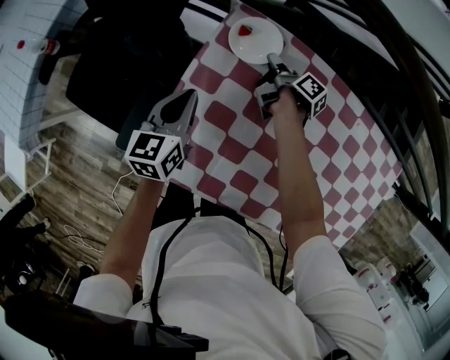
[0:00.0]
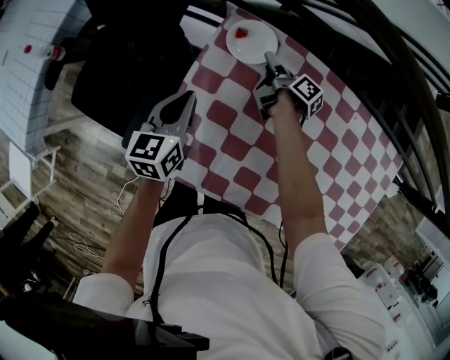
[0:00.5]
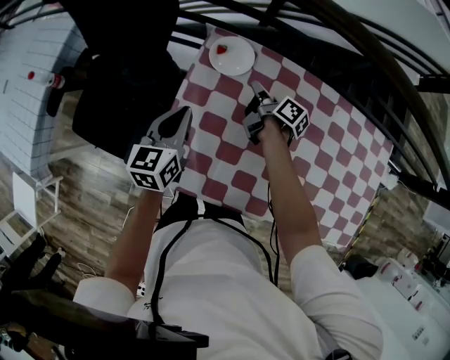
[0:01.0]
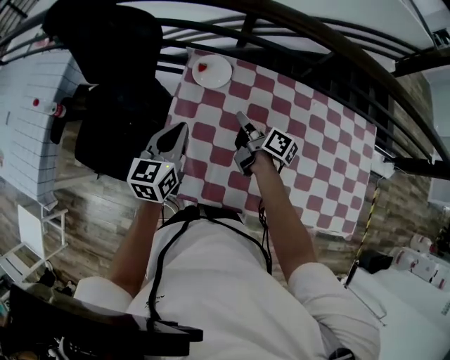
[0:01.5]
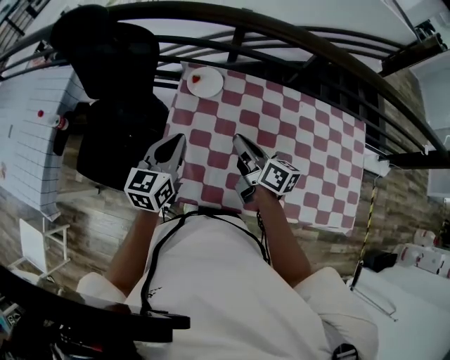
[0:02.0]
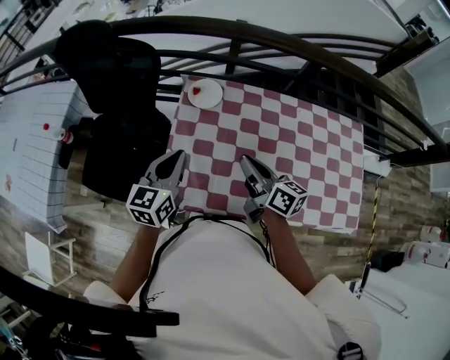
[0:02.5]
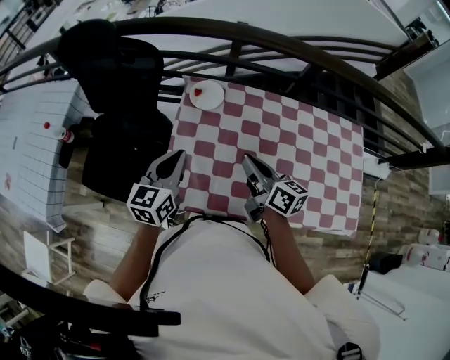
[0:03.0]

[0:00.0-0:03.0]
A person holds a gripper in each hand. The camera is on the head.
0:00.0 to 0:01.5: The left gripper goes approximately 10 cm upward.
0:01.5 to 0:03.0: The left gripper changes place by about 10 cm.

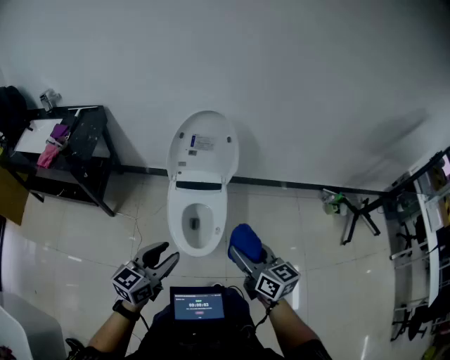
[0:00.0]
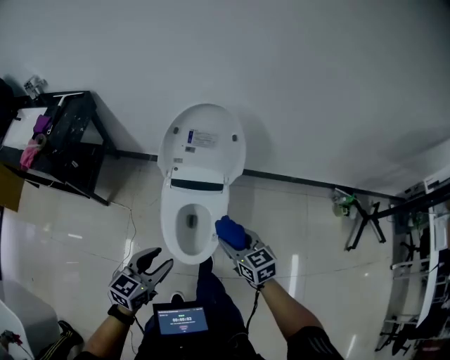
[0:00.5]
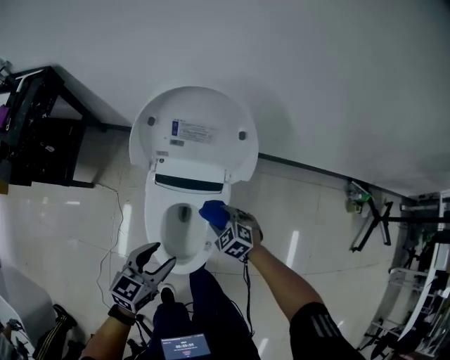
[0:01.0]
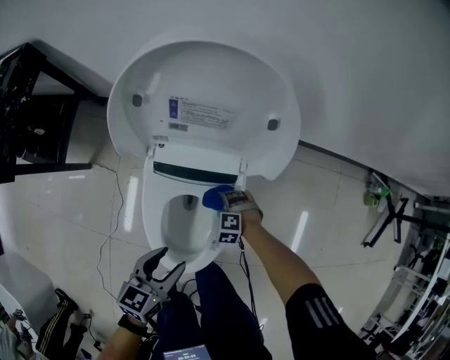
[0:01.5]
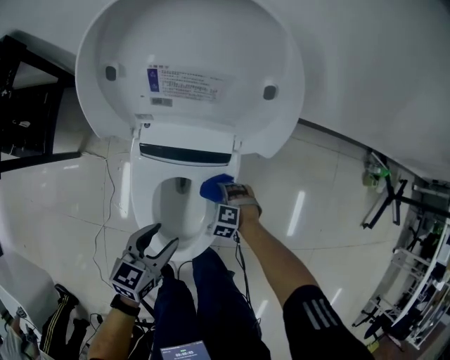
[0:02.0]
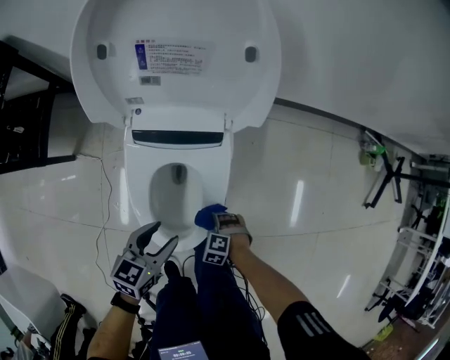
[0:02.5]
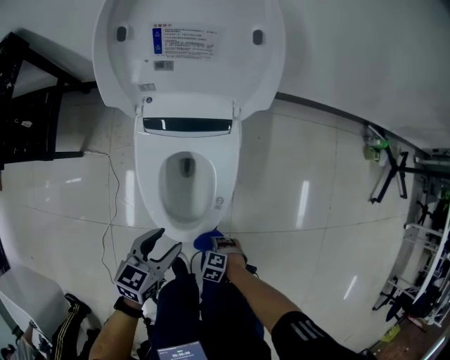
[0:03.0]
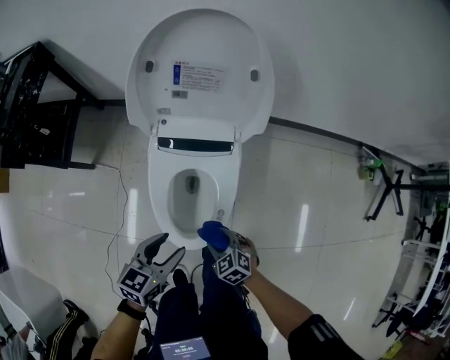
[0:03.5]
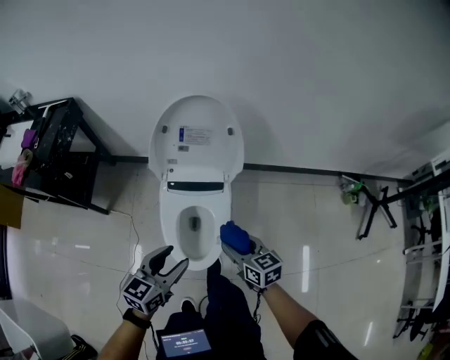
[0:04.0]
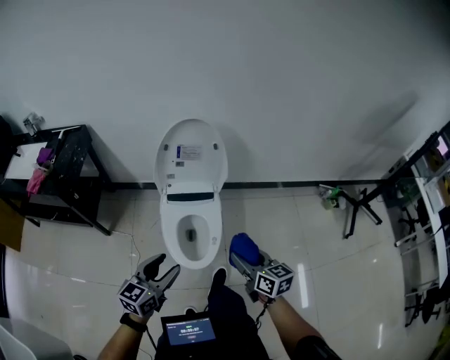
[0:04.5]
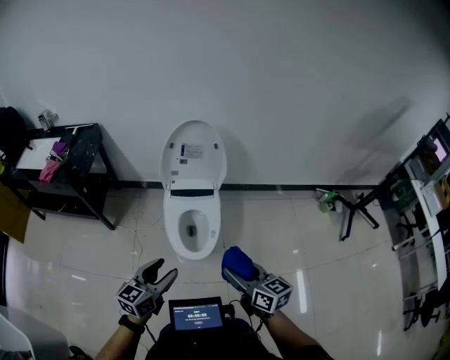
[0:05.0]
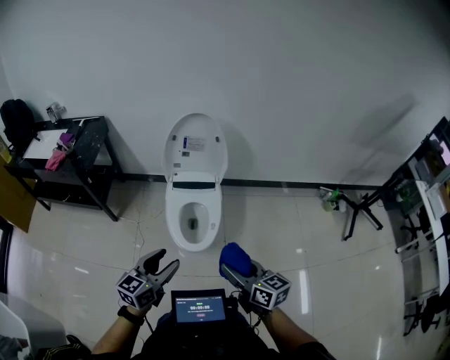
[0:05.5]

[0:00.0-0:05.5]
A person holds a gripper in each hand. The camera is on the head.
0:00.0 to 0:02.0: The left gripper travels downward by approximately 40 cm, and turns by approximately 30 degrees. The right gripper heads downward, covering roughly 70 cm, and points its fingers about 60 degrees further downward.
0:02.0 to 0:03.5: The left gripper shifts by some 15 cm. Meanwhile the right gripper shifts by some 25 cm, and rotates some 40 degrees.
0:03.5 to 0:05.5: Both grippers travel together upward and backward, about 50 cm. The left gripper rotates approximately 20 degrees. The right gripper tilts its fingers about 40 degrees upward.

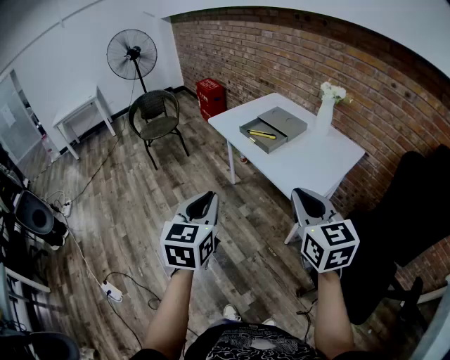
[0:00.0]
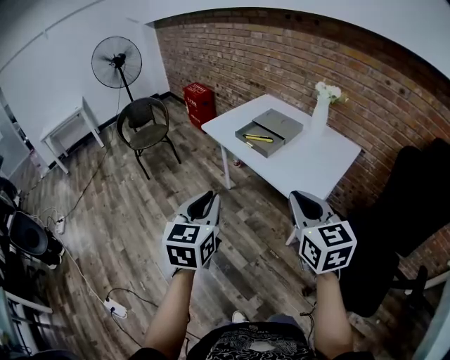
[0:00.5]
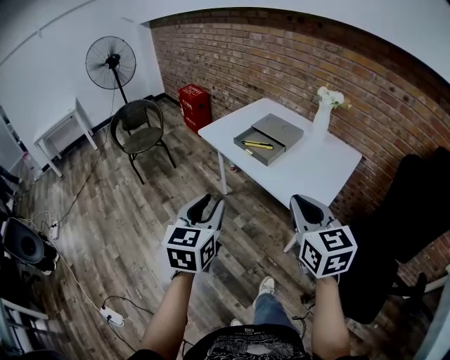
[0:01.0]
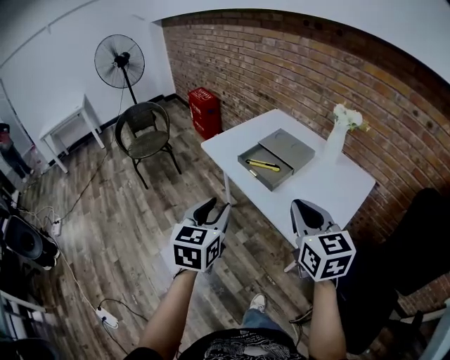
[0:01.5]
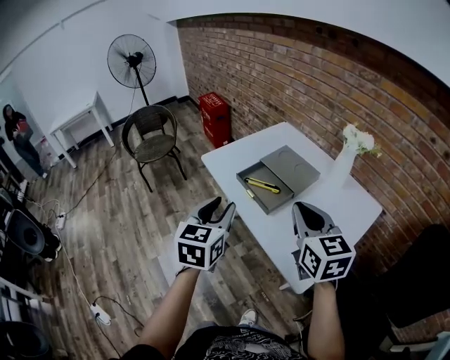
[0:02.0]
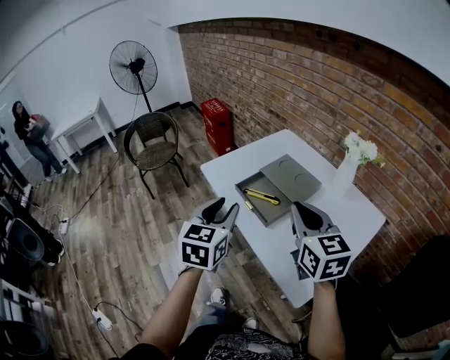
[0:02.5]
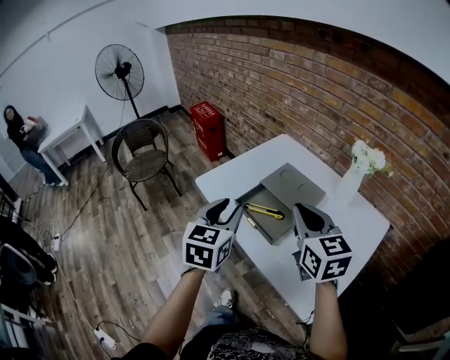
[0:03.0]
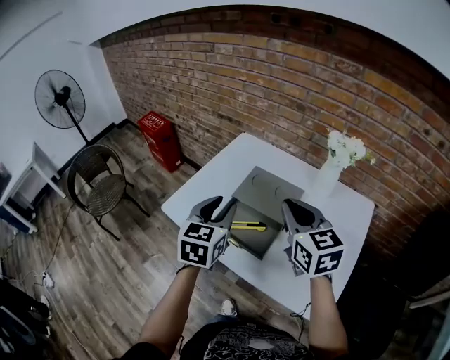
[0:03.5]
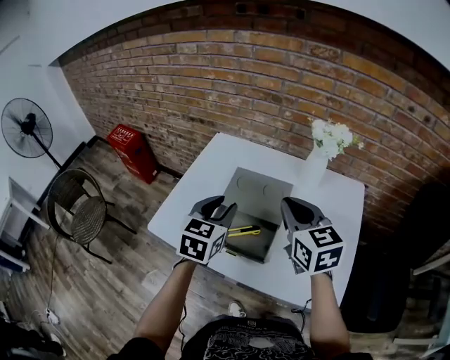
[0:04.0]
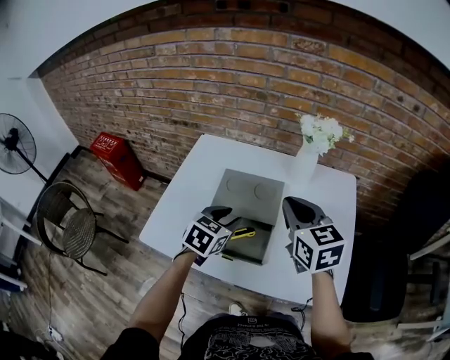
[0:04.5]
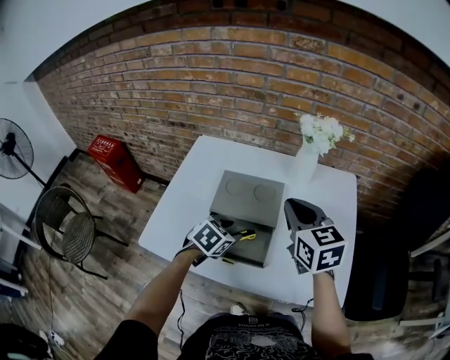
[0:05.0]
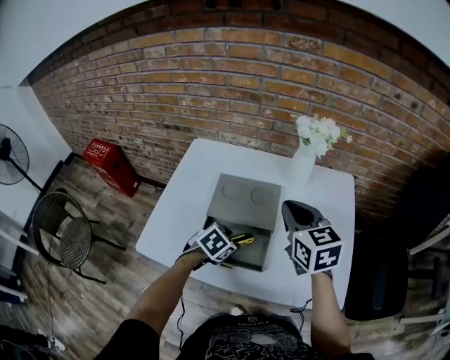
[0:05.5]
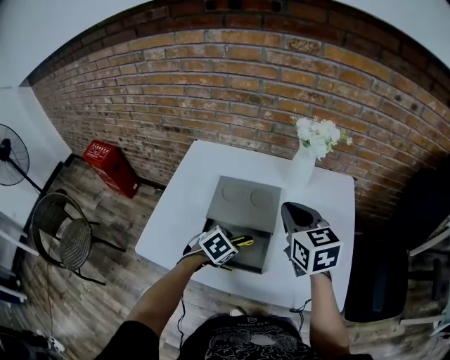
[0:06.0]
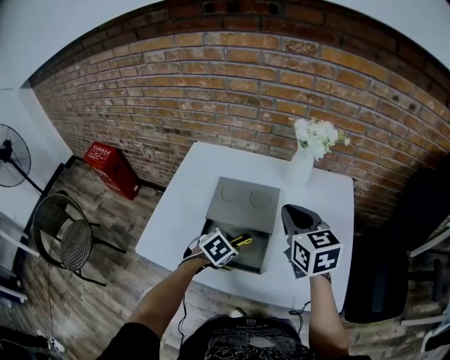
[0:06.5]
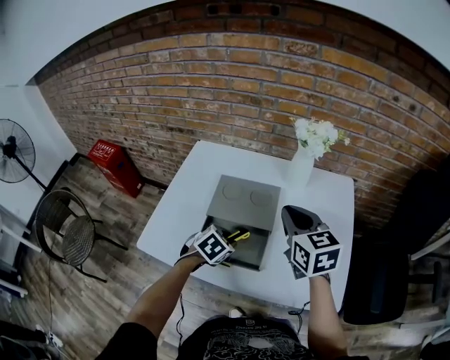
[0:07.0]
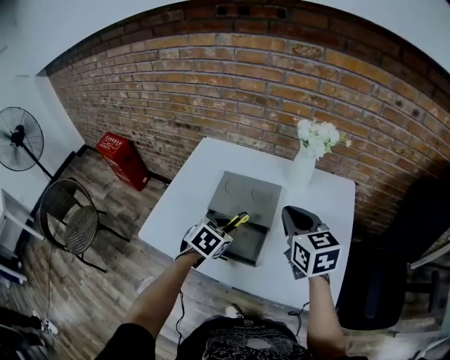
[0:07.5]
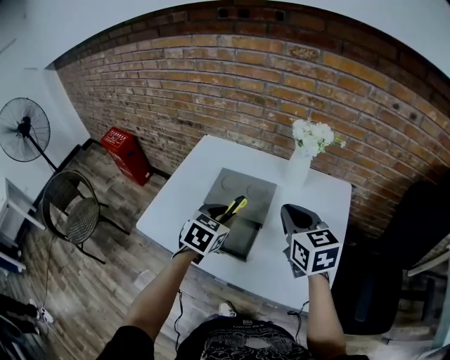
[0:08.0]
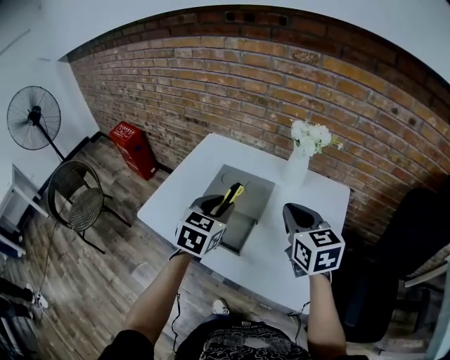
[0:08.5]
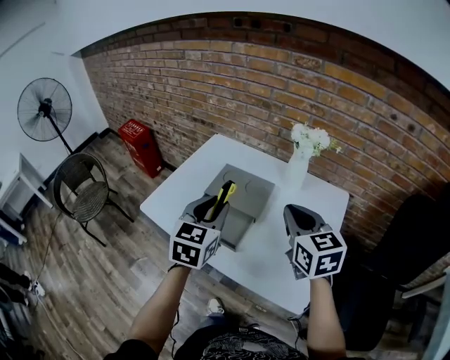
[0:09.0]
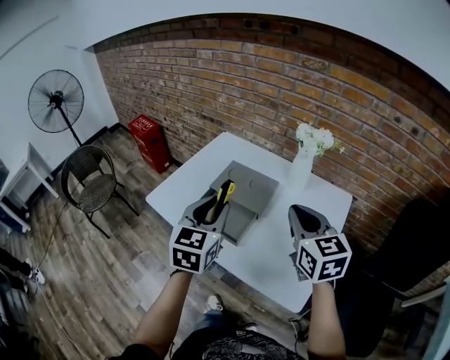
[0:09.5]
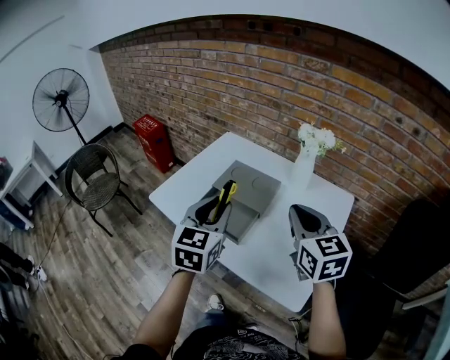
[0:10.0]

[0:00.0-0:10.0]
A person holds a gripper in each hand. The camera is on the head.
0:00.0 to 0:02.0: The two grippers go approximately 30 cm forward. The left gripper opens its fingers.
0:02.0 to 0:04.0: The right gripper moves approximately 20 cm, and rotates roughly 30 degrees. The left gripper changes place by approximately 30 cm, and rotates about 40 degrees.
0:04.0 to 0:06.0: The right gripper changes place by some 5 cm. Meanwhile the left gripper is displaced downward by some 20 cm, and tips its fingers downward by approximately 40 degrees.
0:06.0 to 0:08.0: The left gripper travels upward by approximately 15 cm, and changes its angle by approximately 30 degrees. The right gripper moves about 5 cm.
0:08.0 to 0:10.0: The right gripper heads backward and upward, covering roughly 10 cm. The left gripper moves upward and backward, roughly 15 cm, and turns by about 30 degrees.

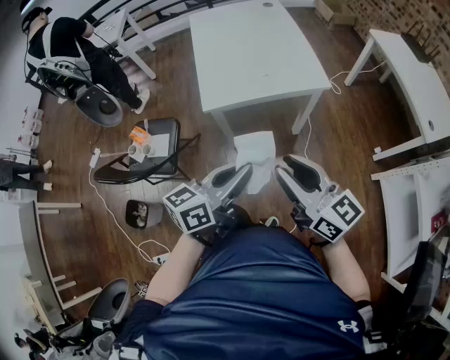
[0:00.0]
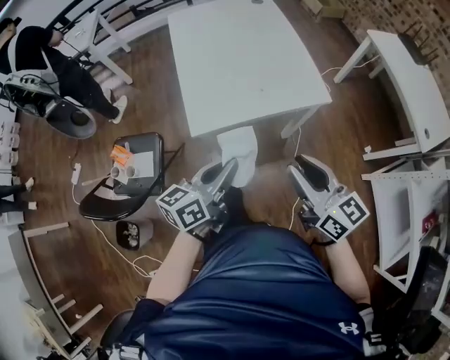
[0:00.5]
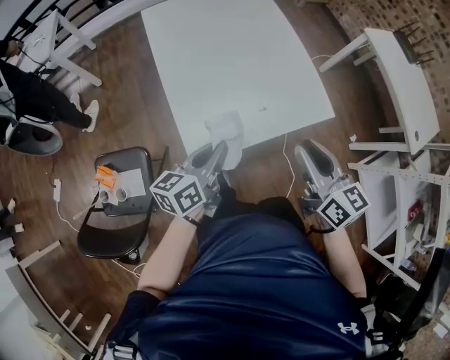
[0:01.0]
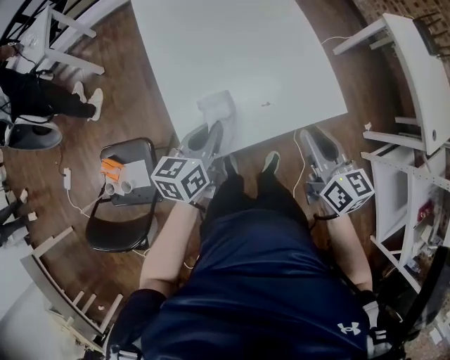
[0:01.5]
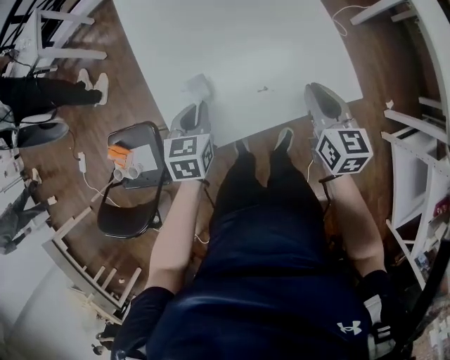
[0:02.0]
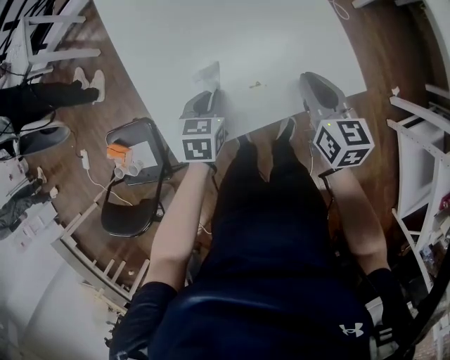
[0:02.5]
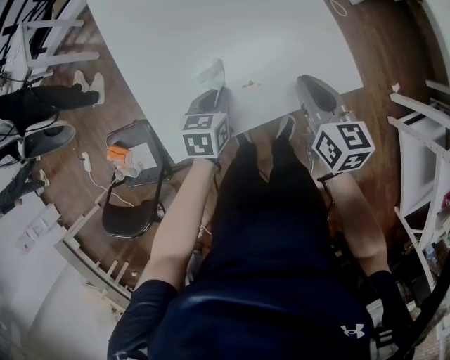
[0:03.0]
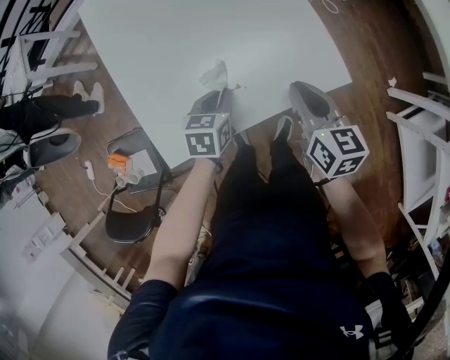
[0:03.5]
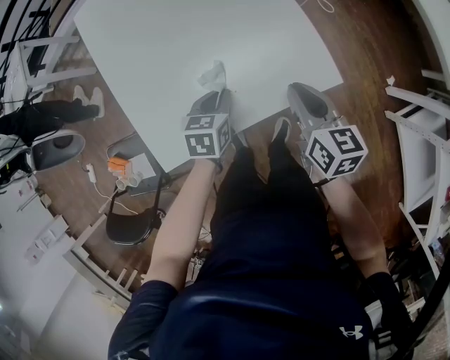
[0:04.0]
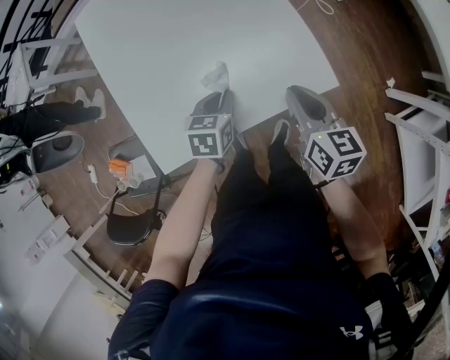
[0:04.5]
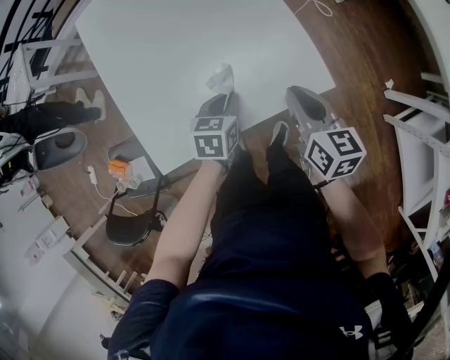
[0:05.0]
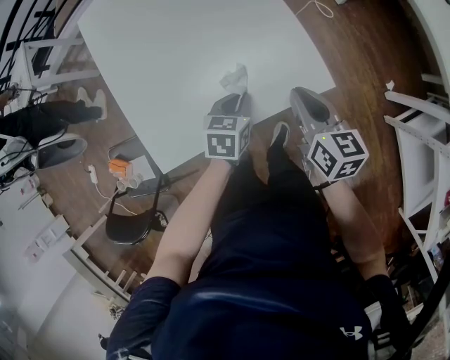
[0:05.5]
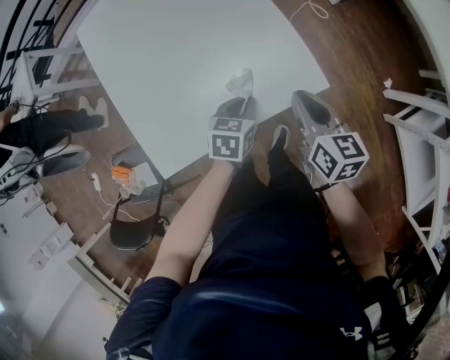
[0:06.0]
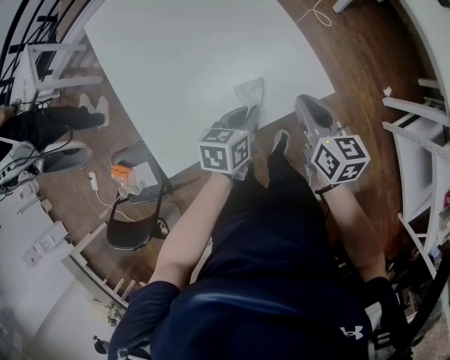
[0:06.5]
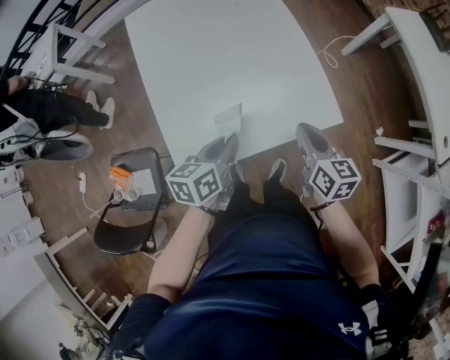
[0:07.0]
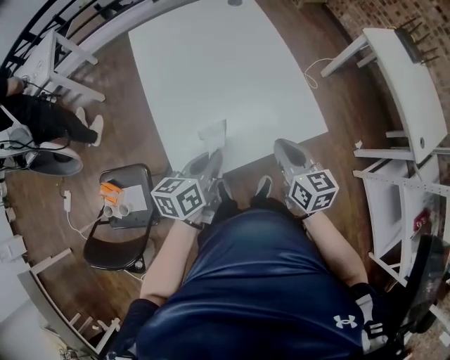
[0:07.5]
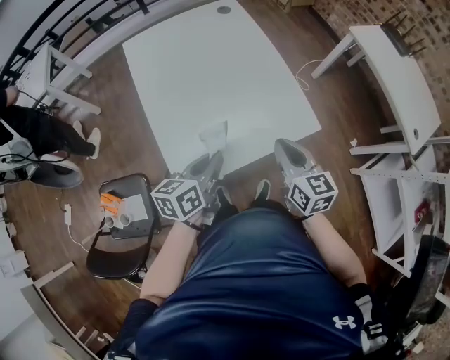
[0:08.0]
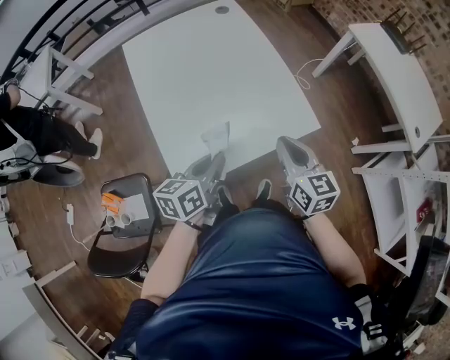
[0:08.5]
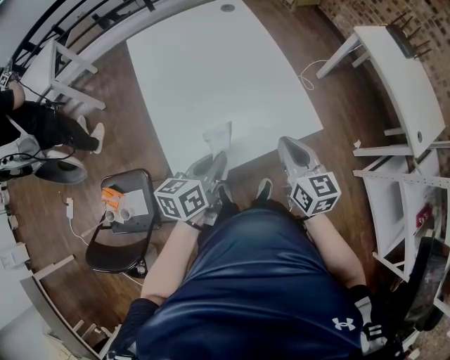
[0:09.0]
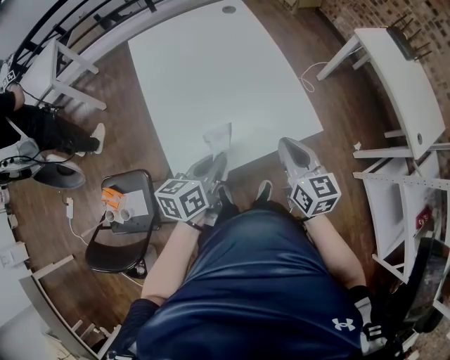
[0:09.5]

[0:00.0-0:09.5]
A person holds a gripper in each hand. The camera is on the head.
0:00.0 to 0:02.0: The two grippers travel together, forward, approximately 40 cm. The two grippers go roughly 25 cm downward. The right gripper angles its fingers downward, by roughly 30 degrees. Meanwhile the left gripper tilts its fingers approximately 40 degrees downward.
0:02.0 to 0:04.0: The left gripper goes about 15 cm to the right and downward, while the right gripper shifts by approximately 5 cm.
0:04.0 to 0:05.5: The left gripper heads to the right, covering about 5 cm.
0:05.5 to 0:07.5: The right gripper moves to the left, upward and backward, some 15 cm; the left gripper goes some 25 cm upward, to the left and backward, and changes its angle by about 40 degrees.
0:07.5 to 0:09.5: The grippers move only a little.
